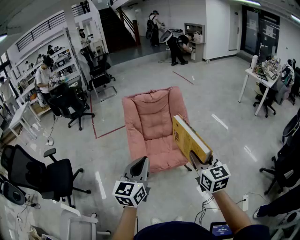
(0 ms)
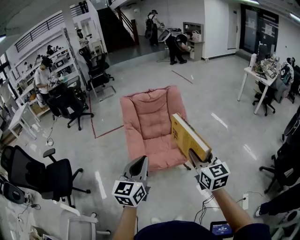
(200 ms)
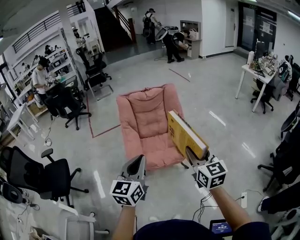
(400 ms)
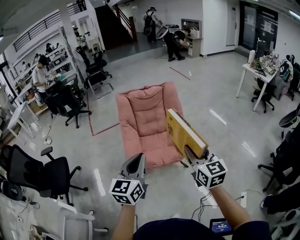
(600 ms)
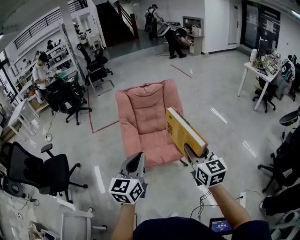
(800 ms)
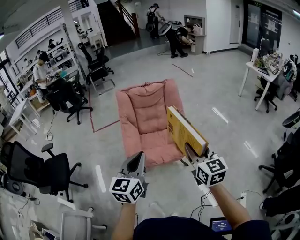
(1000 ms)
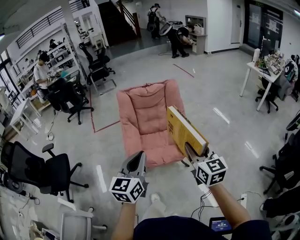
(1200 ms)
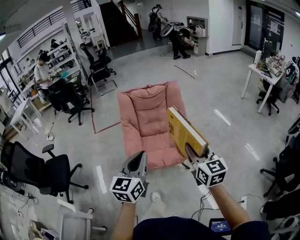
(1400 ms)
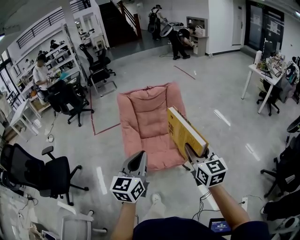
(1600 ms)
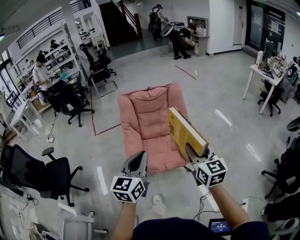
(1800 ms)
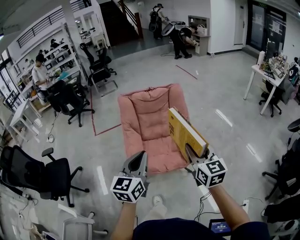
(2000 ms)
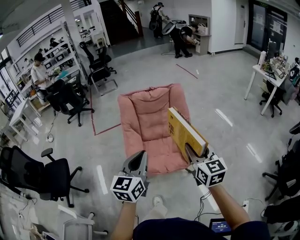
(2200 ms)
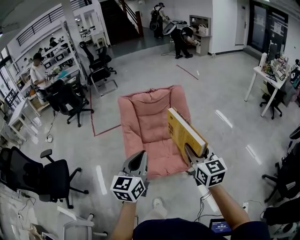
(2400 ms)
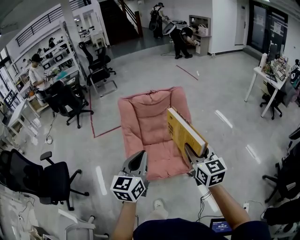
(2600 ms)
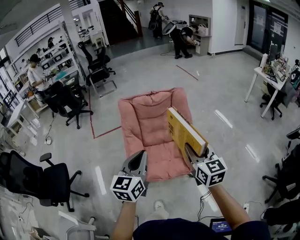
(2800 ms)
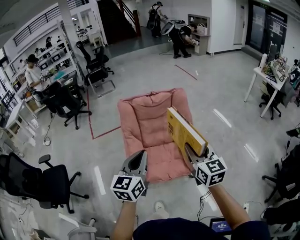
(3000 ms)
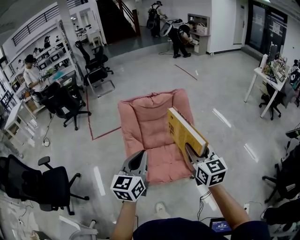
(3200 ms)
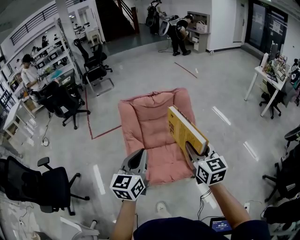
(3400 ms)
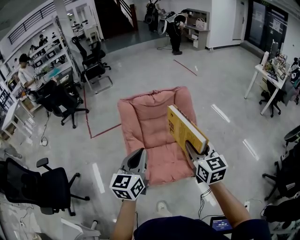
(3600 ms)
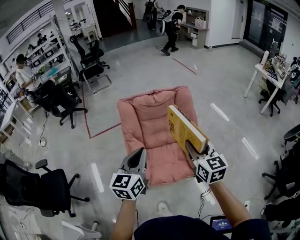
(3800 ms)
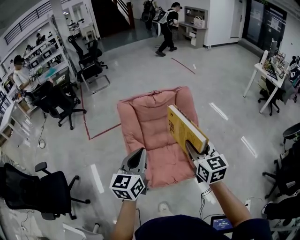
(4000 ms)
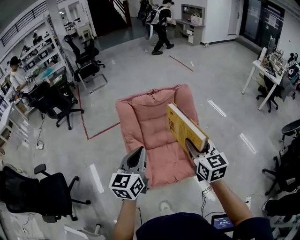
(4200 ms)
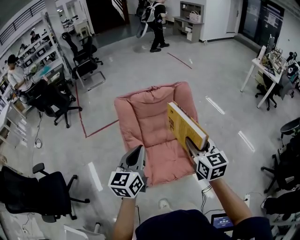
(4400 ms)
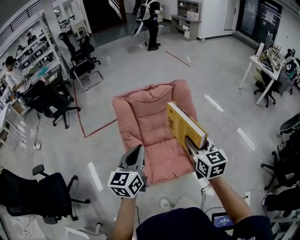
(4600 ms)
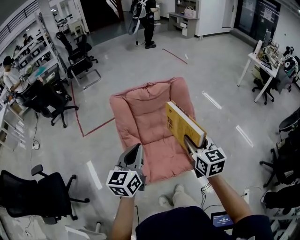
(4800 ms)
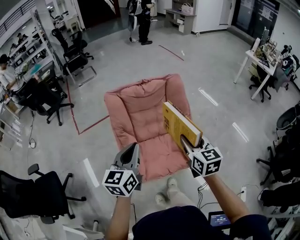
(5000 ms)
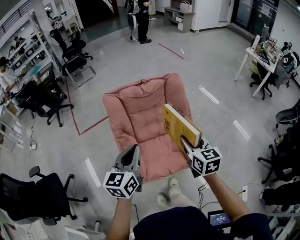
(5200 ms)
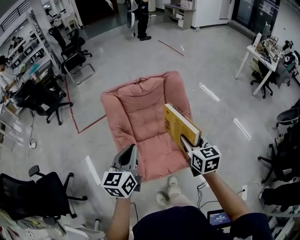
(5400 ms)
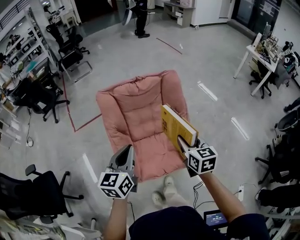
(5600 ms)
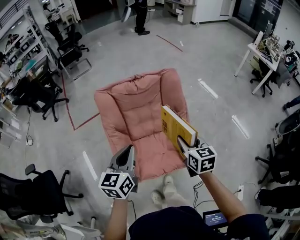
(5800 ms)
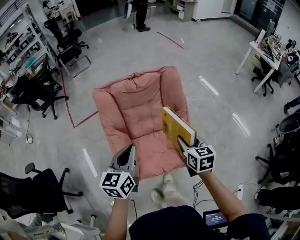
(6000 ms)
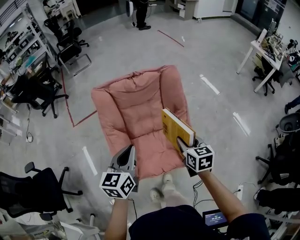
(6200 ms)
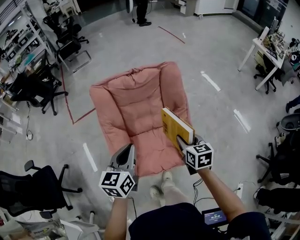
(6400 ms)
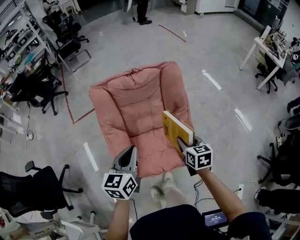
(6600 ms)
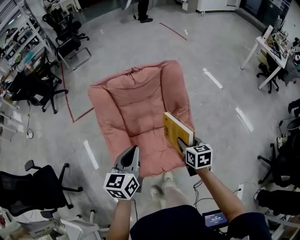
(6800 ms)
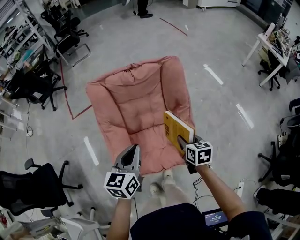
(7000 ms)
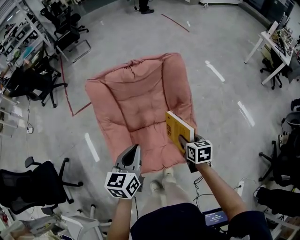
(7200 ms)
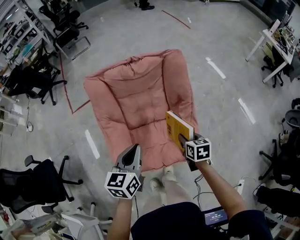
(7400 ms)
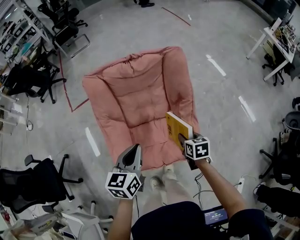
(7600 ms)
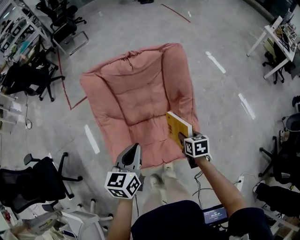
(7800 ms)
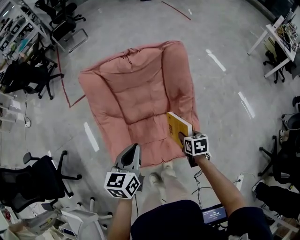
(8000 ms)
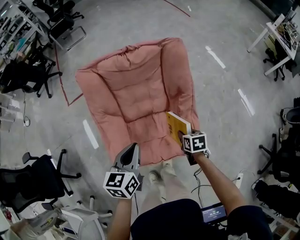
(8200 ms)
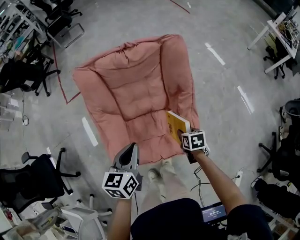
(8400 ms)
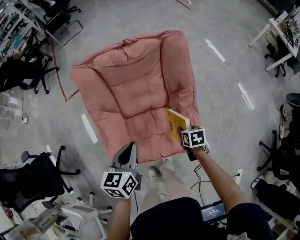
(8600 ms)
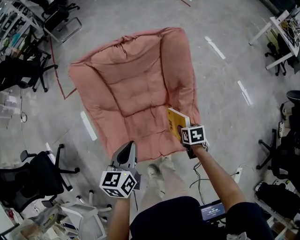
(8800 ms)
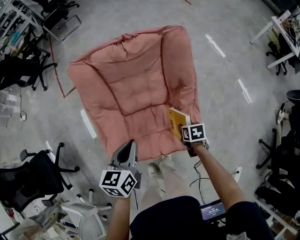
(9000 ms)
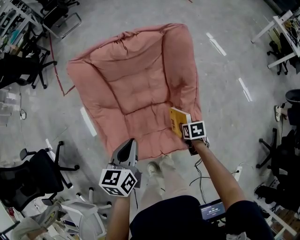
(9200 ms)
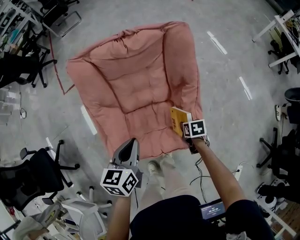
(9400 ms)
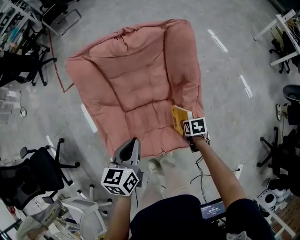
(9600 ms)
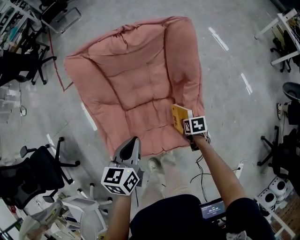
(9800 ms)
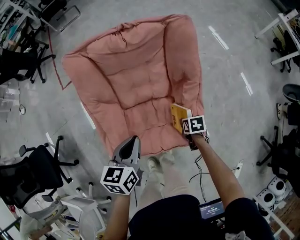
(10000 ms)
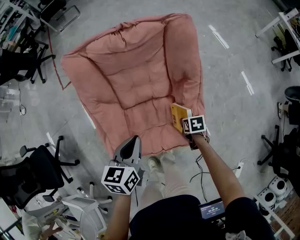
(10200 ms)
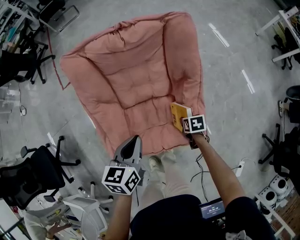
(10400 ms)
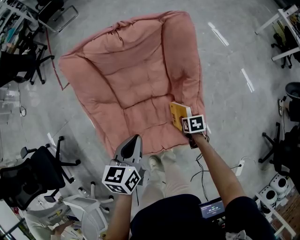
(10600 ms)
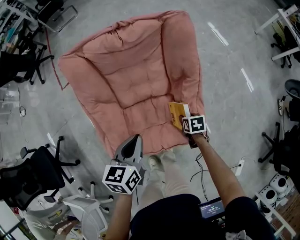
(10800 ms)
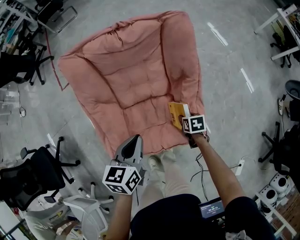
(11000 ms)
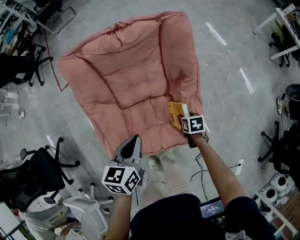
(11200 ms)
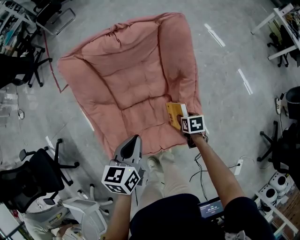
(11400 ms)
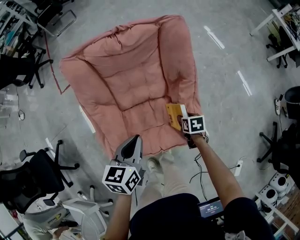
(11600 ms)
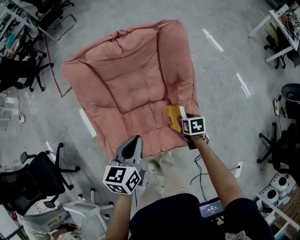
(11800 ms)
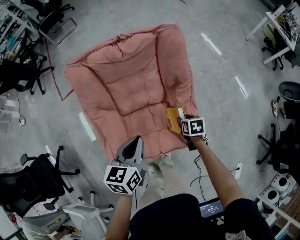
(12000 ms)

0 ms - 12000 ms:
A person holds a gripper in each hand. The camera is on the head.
0 ms - 1600 ms: The grippers both shift forward by some 5 cm.
1600 ms - 3000 ms: The grippers both shift forward by about 15 cm.
3000 ms - 4400 ms: Both grippers move forward and to the left, some 15 cm.
4400 ms - 6000 ms: The right gripper is displaced downward, forward and to the right by about 15 cm. Meanwhile the left gripper is displaced downward, forward and to the right by approximately 10 cm.
6000 ms - 7600 ms: The right gripper is displaced downward by about 20 cm, and rotates about 20 degrees. The left gripper shifts roughly 10 cm downward.
7600 ms - 9000 ms: The right gripper is displaced downward by about 10 cm. Meanwhile the left gripper moves downward, roughly 5 cm.
9000 ms - 10400 ms: The right gripper moves downward, about 5 cm.
10400 ms - 12000 ms: The right gripper is displaced upward by roughly 5 cm.

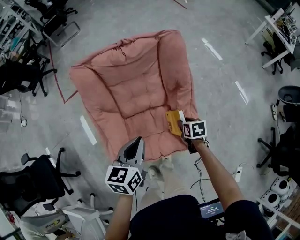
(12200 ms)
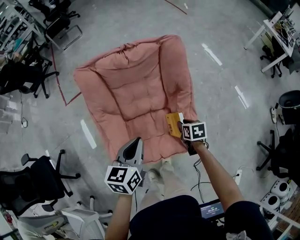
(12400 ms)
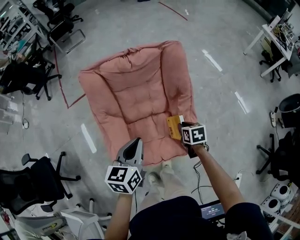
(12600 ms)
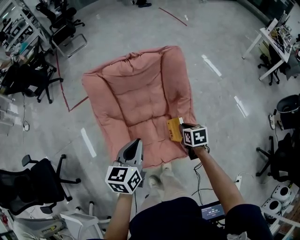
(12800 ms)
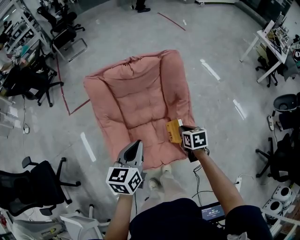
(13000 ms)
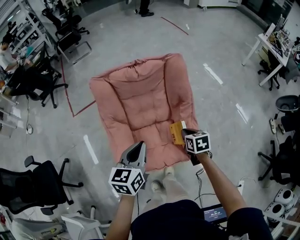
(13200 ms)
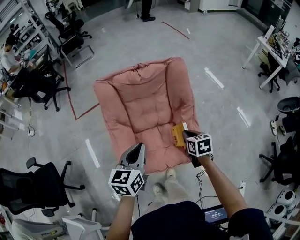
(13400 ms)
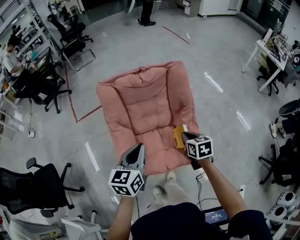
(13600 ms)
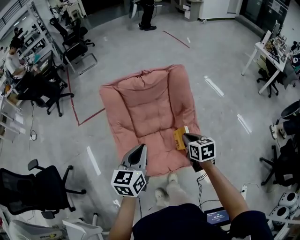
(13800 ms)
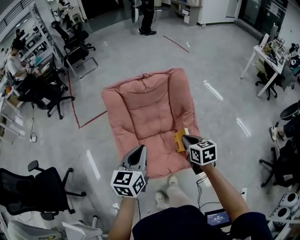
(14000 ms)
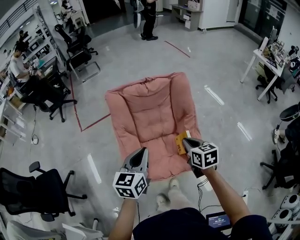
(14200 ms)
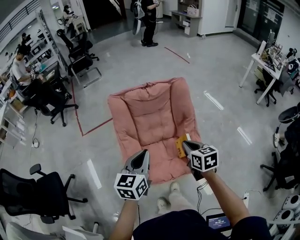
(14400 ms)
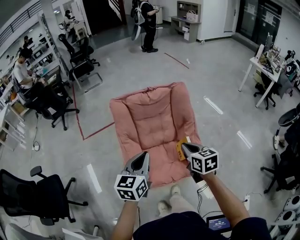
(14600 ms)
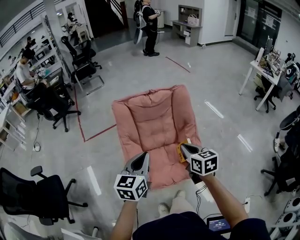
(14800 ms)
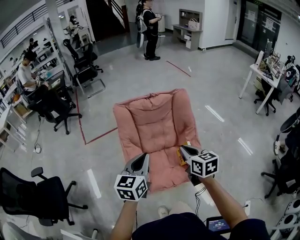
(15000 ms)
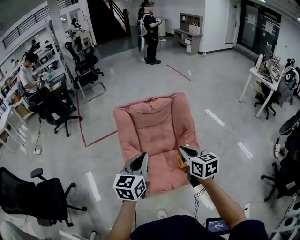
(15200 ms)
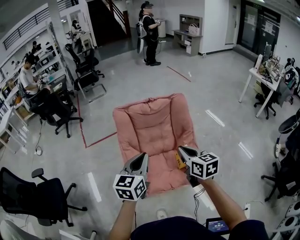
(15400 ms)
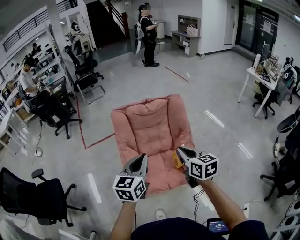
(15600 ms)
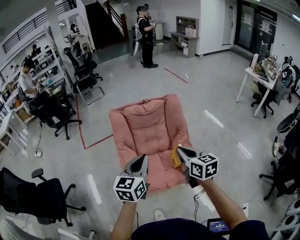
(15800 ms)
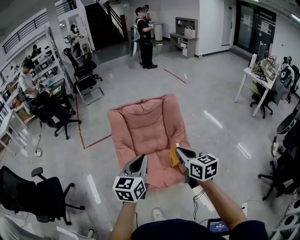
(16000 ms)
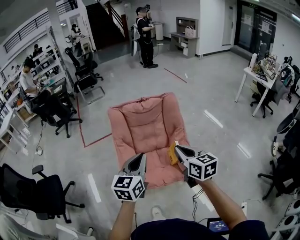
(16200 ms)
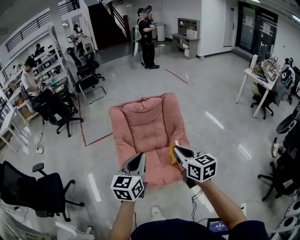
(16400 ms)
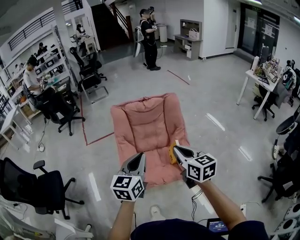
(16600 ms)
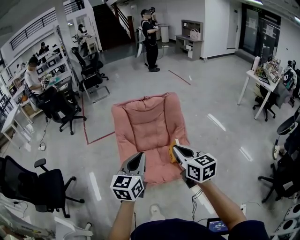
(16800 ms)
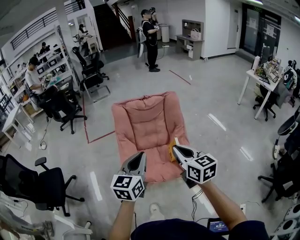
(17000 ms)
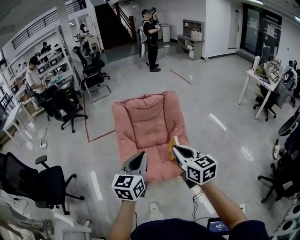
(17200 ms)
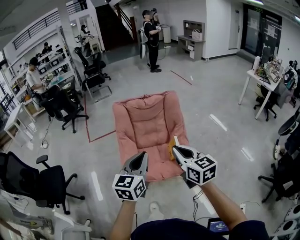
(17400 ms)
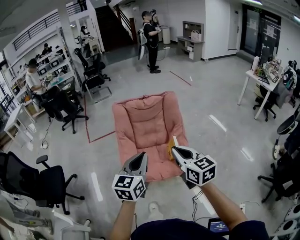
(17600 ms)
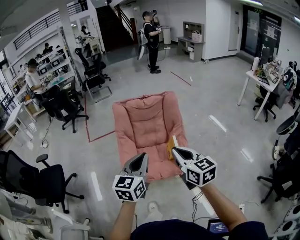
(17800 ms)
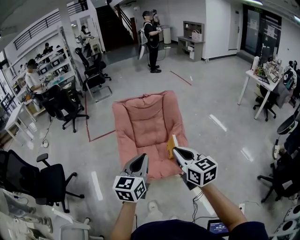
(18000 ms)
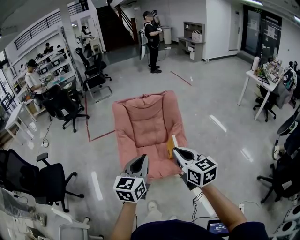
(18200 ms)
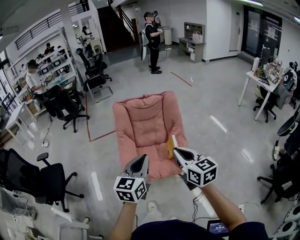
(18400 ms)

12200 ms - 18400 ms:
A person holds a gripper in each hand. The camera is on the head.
12200 ms - 13800 ms: The right gripper goes approximately 20 cm upward and to the left, turns by roughly 20 degrees, and closes up. The left gripper shifts about 15 cm upward, to the left and backward.
13800 ms - 15400 ms: The left gripper is displaced upward and backward by approximately 10 cm. The right gripper is displaced upward and backward by approximately 15 cm, and changes its angle by about 20 degrees.
15400 ms - 16800 ms: The right gripper heads backward and upward, covering approximately 15 cm. Meanwhile the left gripper shifts some 15 cm backward and to the right.
16800 ms - 18400 ms: Both grippers move backward, about 10 cm.

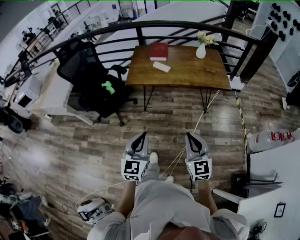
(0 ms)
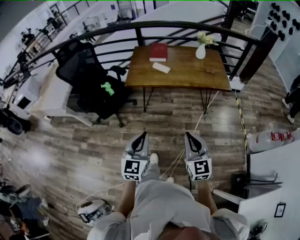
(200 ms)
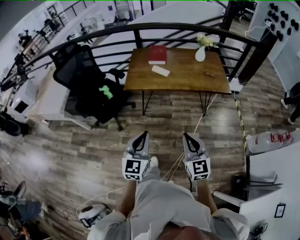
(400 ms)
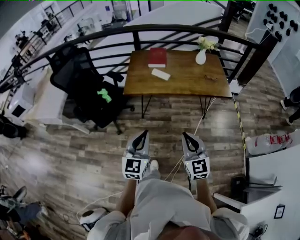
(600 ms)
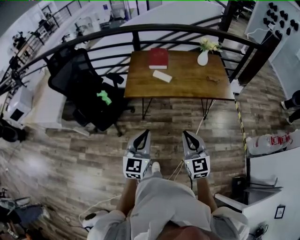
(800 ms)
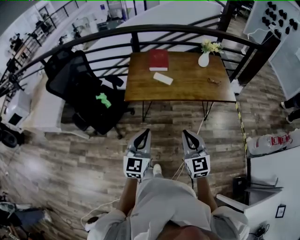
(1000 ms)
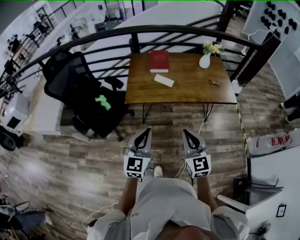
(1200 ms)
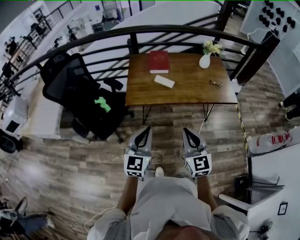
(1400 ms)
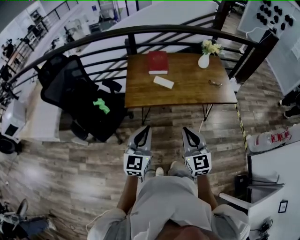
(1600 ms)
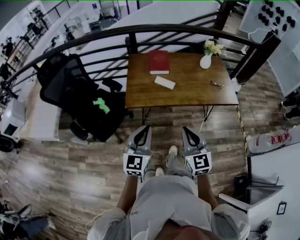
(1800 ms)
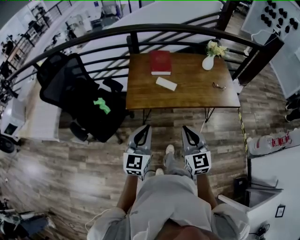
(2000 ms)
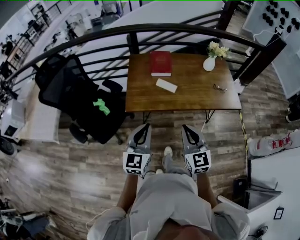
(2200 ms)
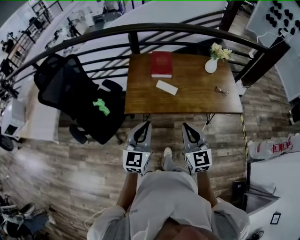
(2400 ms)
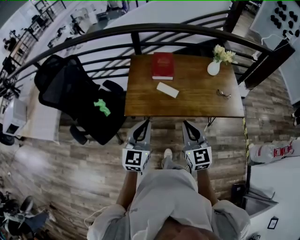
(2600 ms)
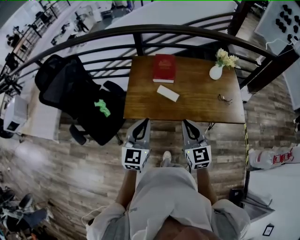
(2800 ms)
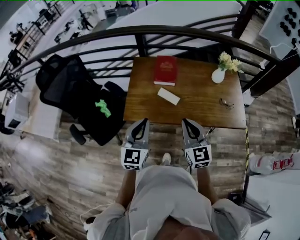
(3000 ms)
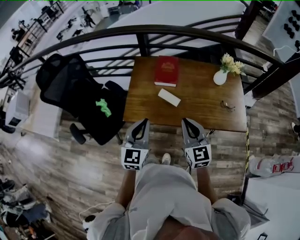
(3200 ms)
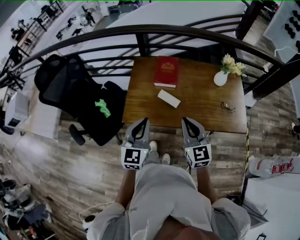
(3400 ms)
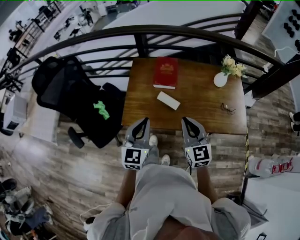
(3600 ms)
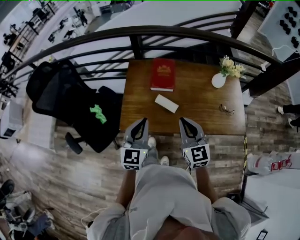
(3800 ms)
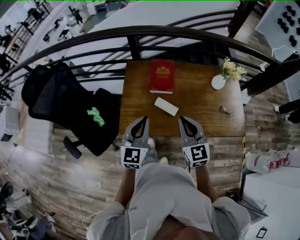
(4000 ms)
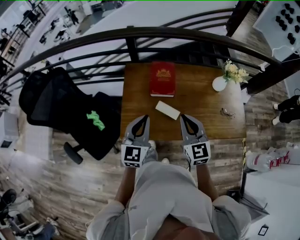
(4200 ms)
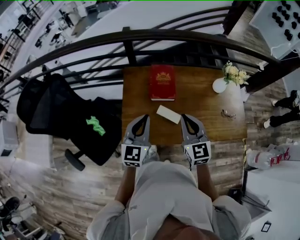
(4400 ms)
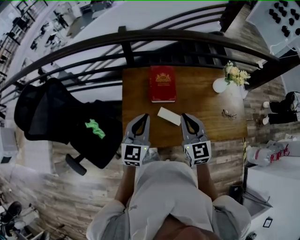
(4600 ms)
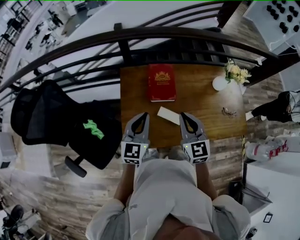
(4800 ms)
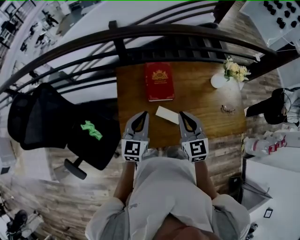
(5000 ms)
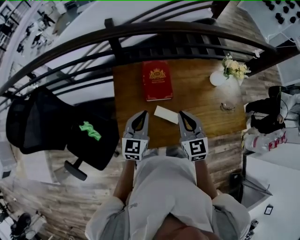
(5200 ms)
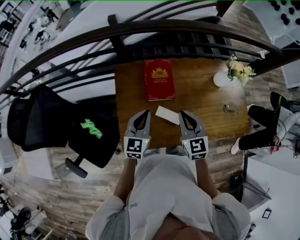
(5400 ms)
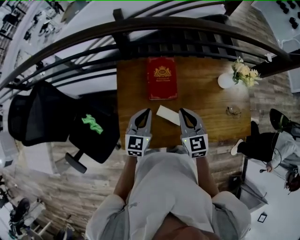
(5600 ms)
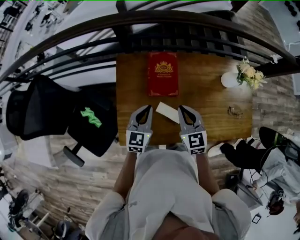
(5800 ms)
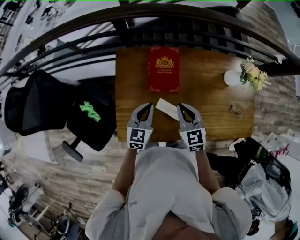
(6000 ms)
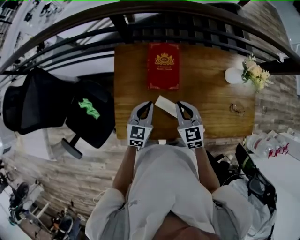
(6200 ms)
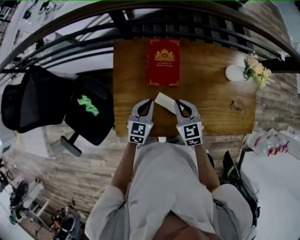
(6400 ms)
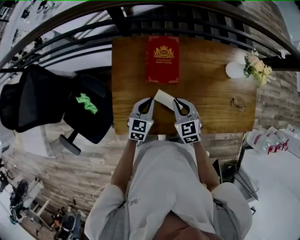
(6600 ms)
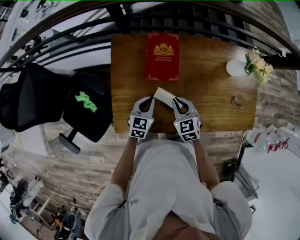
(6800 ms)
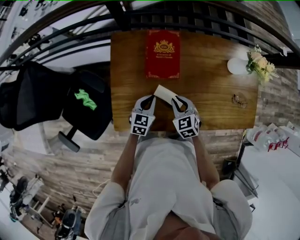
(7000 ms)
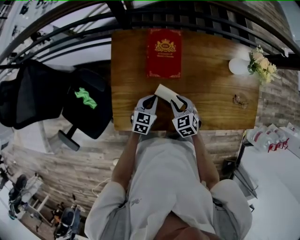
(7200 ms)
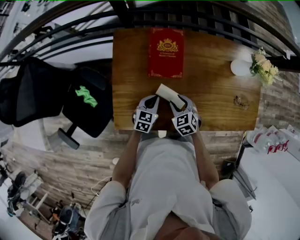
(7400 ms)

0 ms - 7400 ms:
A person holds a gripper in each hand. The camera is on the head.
0 ms - 1400 ms: The right gripper goes roughly 25 cm forward and to the left. The left gripper heads forward, covering some 25 cm.
1400 ms - 3000 ms: Both grippers travel together forward, approximately 25 cm.
3000 ms - 4400 ms: The grippers both shift forward by roughly 20 cm.
4400 ms - 6000 ms: The two grippers go some 20 cm downward and forward.
6000 ms - 7400 ms: The grippers both shift downward by roughly 15 cm. The right gripper changes its angle by about 30 degrees, and opens.
